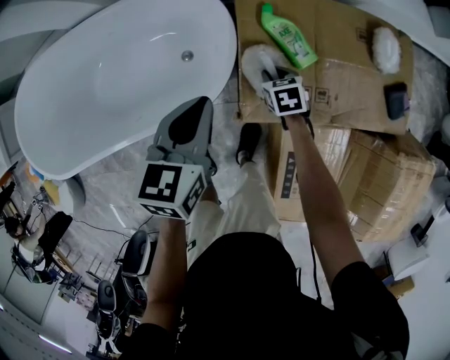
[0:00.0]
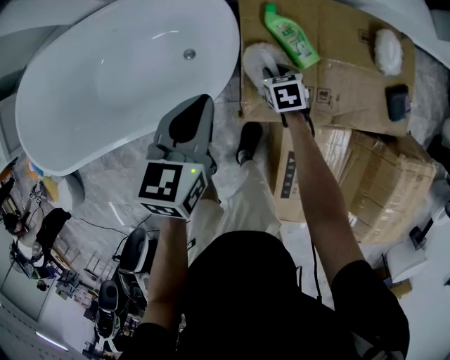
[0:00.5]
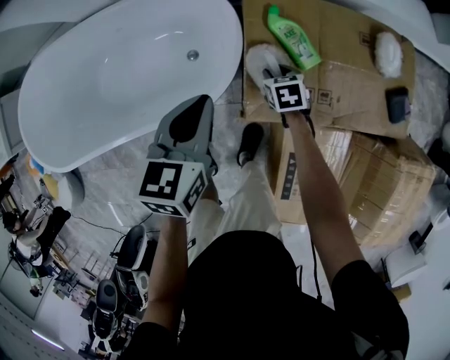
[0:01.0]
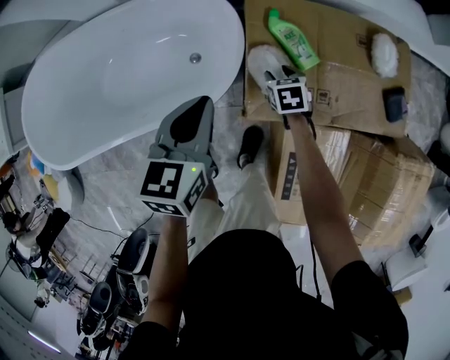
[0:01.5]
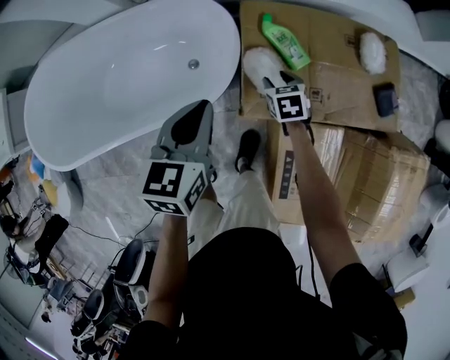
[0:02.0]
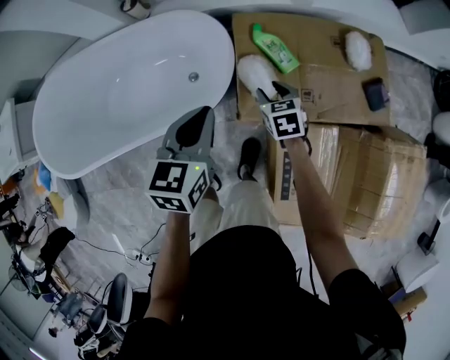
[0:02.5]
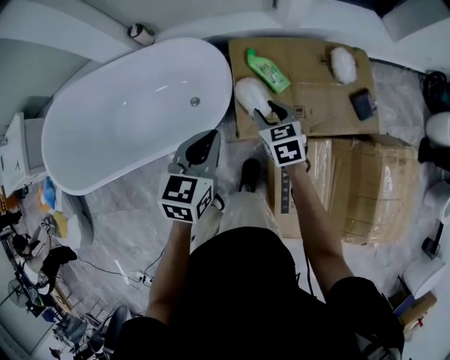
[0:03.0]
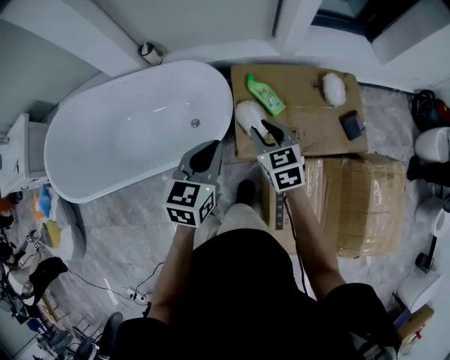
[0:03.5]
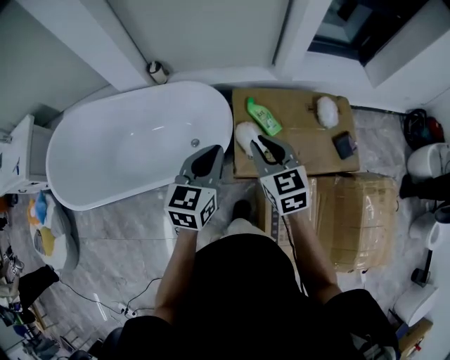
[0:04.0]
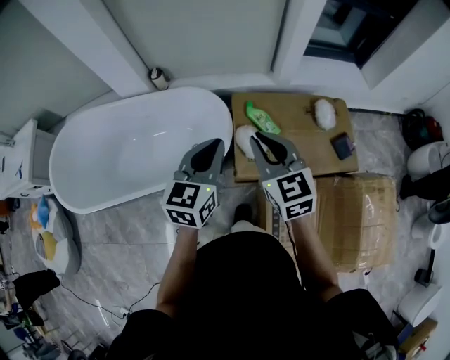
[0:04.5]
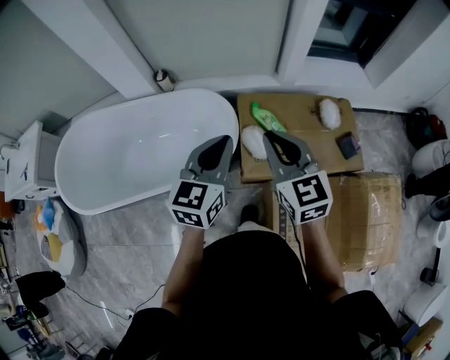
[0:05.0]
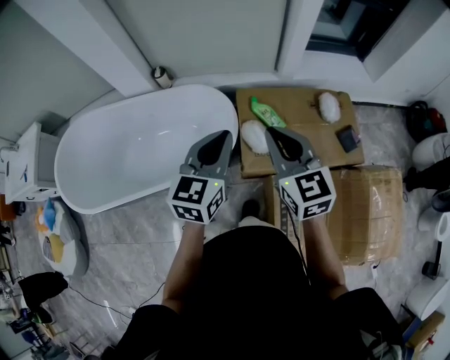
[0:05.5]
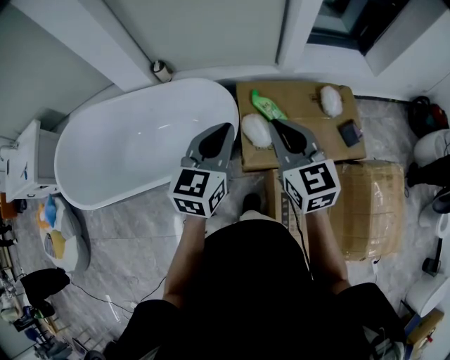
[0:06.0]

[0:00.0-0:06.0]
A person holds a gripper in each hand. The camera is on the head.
0:00.0 to 0:02.0: The right gripper travels upward by roughly 10 cm, and opens its fingers. Meanwhile the left gripper moves upward and backward, approximately 10 cm.
0:02.0 to 0:04.0: The left gripper is displaced upward by about 15 cm; the right gripper goes some 35 cm upward, swivels roughly 30 degrees, and closes.
0:04.0 to 0:06.0: The left gripper moves upward, about 5 cm. The right gripper is displaced upward by roughly 10 cm.

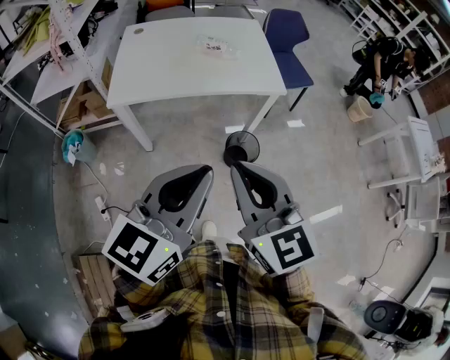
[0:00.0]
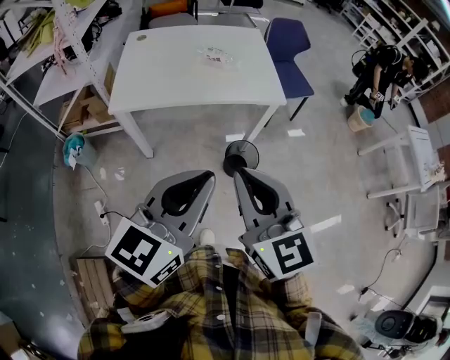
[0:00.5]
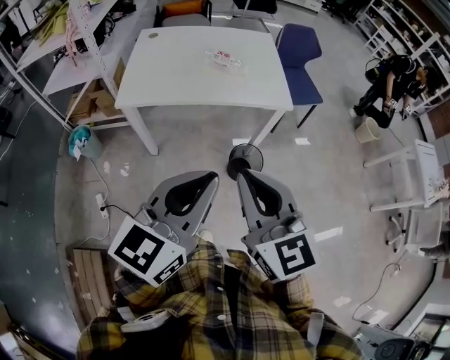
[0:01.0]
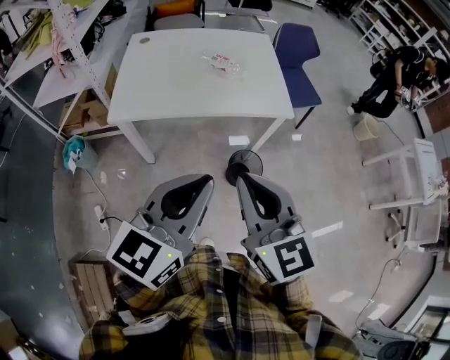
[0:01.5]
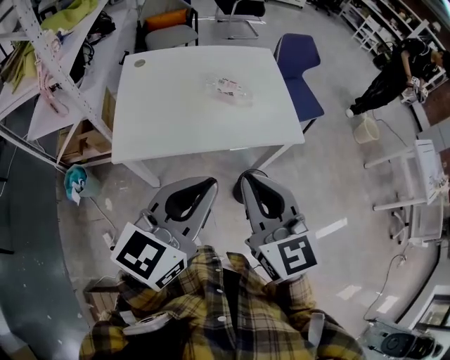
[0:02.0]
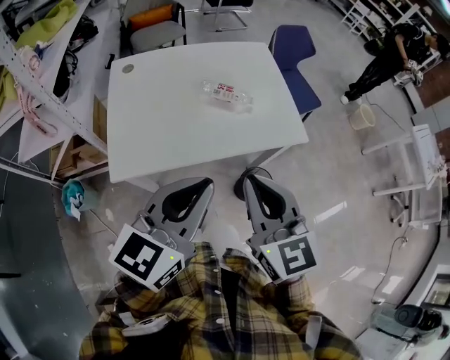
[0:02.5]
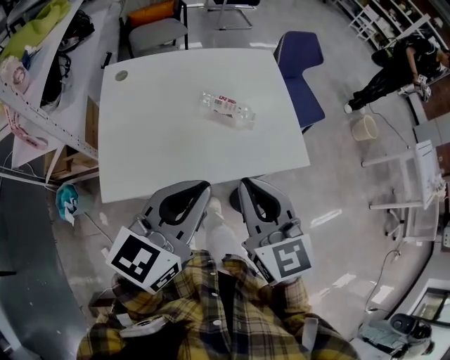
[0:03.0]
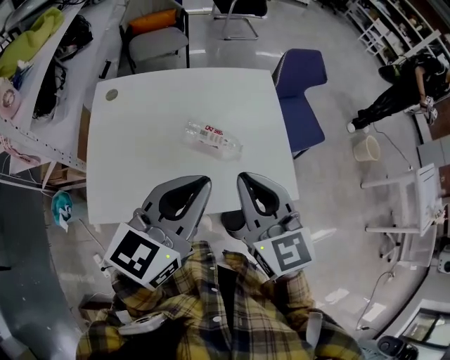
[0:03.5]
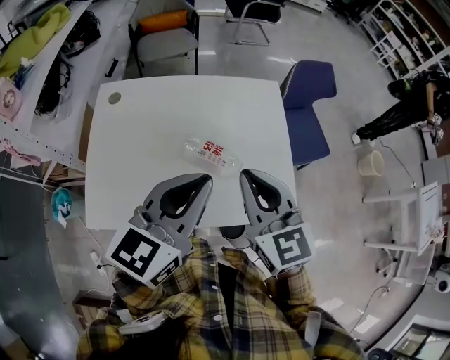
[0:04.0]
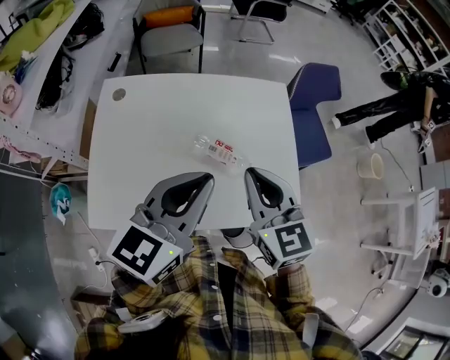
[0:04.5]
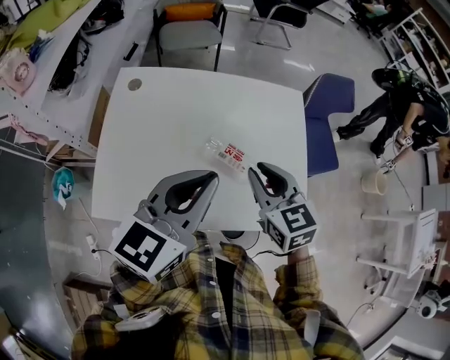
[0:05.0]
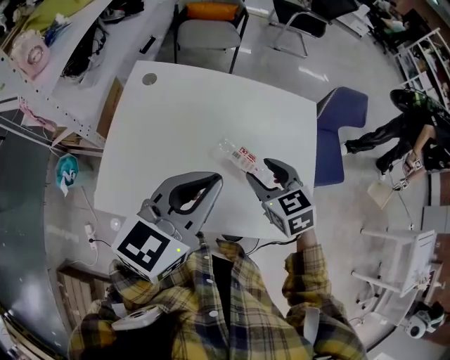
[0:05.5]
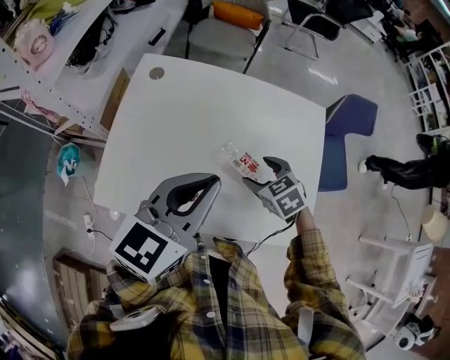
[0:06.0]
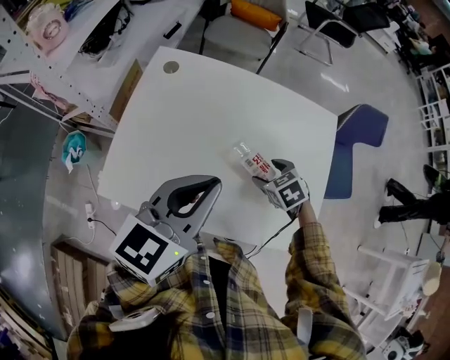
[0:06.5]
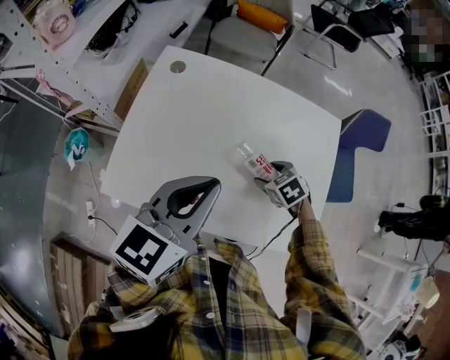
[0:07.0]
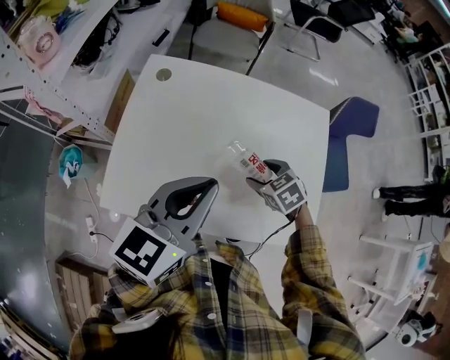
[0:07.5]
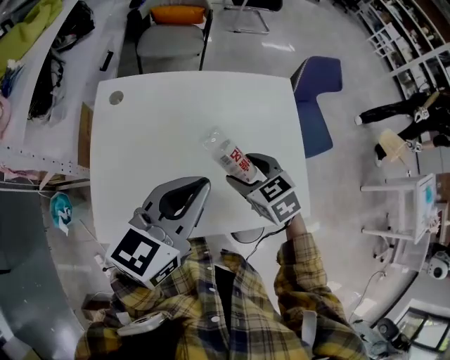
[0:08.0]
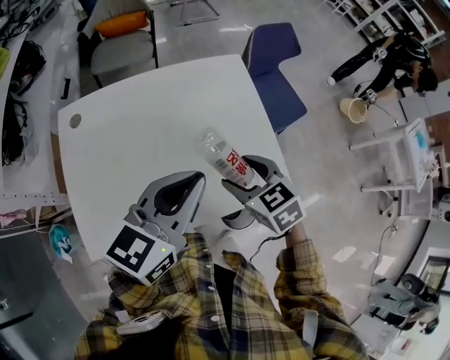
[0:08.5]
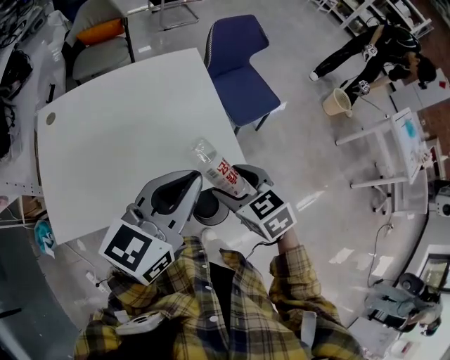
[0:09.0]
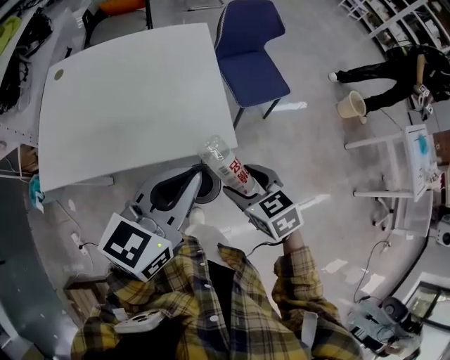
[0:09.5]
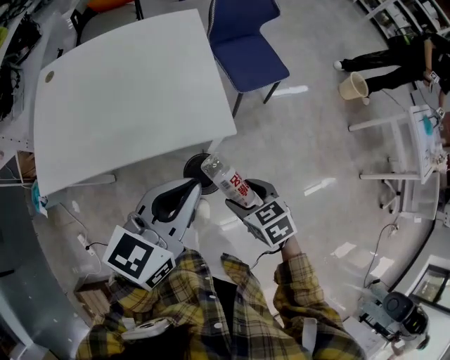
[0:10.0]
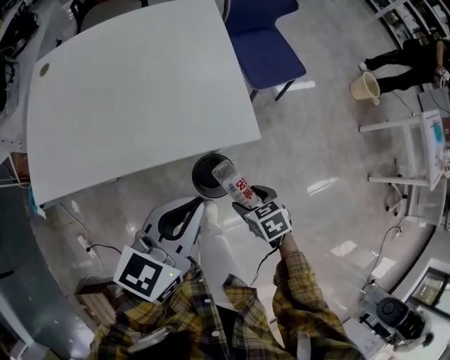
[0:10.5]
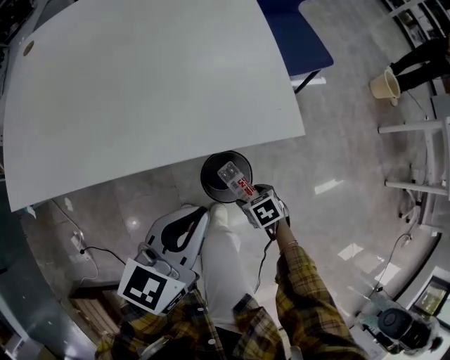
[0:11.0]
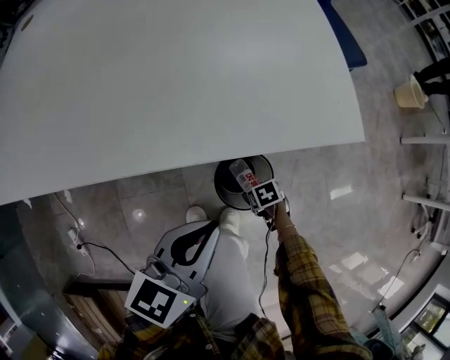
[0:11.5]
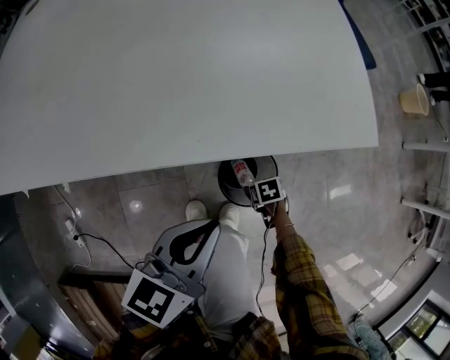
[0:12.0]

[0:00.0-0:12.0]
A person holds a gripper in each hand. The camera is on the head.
0:00.0 to 0:02.0: The grippers both shift forward by roughly 20 cm.
0:02.0 to 0:04.0: Both grippers travel together forward, about 35 cm.
0:04.0 to 0:06.0: The left gripper heads to the left, covering about 10 cm, while the right gripper goes roughly 25 cm downward and forward, tilts its fingers approximately 40 degrees downward, and opens up.
0:06.0 to 0:08.0: The right gripper ends up approximately 5 cm from where it was.
0:08.0 to 0:10.0: Both grippers travel together to the right and backward, about 40 cm.
0:10.0 to 0:12.0: The right gripper shifts approximately 50 cm downward, and turns by roughly 30 degrees. Meanwhile the left gripper moves downward, approximately 35 cm.

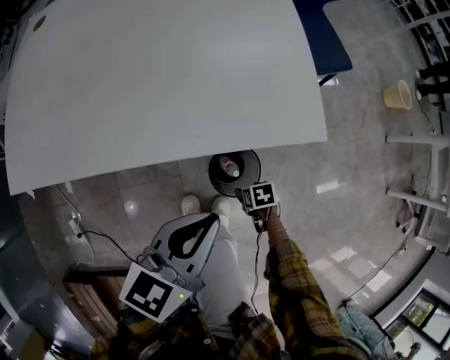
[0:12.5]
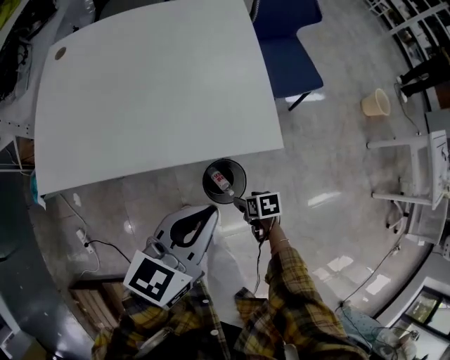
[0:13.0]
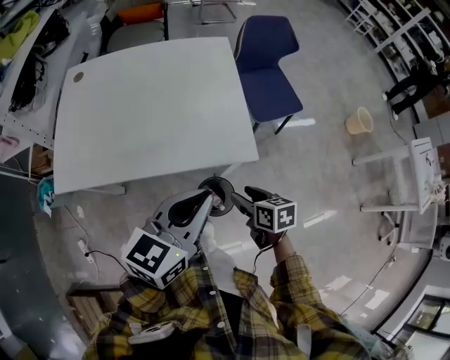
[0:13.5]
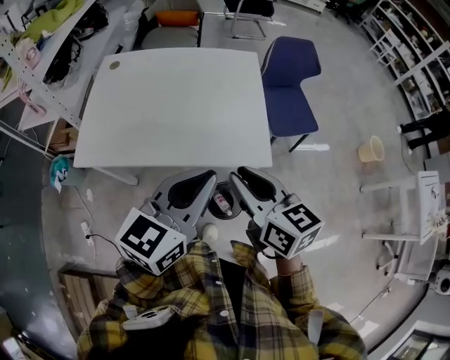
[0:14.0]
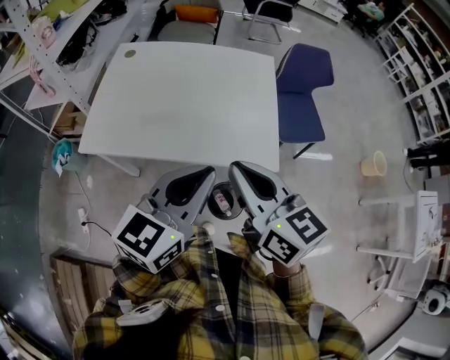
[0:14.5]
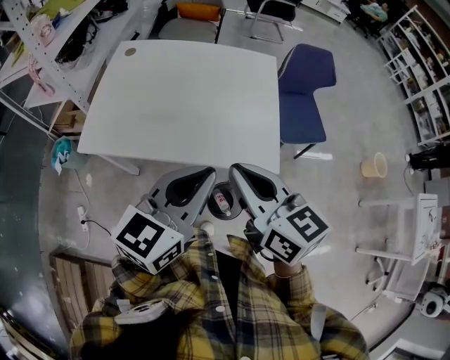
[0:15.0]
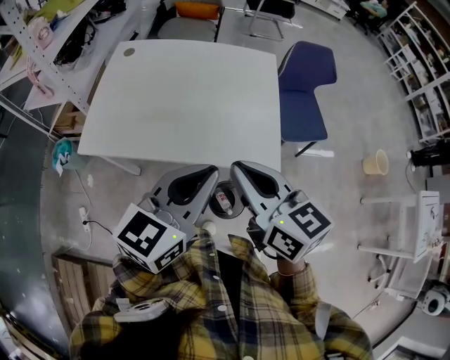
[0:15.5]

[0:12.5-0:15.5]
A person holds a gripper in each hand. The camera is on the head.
0:12.5 to 0:14.0: The right gripper travels upward by about 60 cm, angles its fingers upward, by approximately 60 degrees, and closes its fingers. Meanwhile the left gripper shifts about 30 cm upward, and rotates roughly 20 degrees.
0:14.0 to 0:15.5: The right gripper shifts by approximately 5 cm.

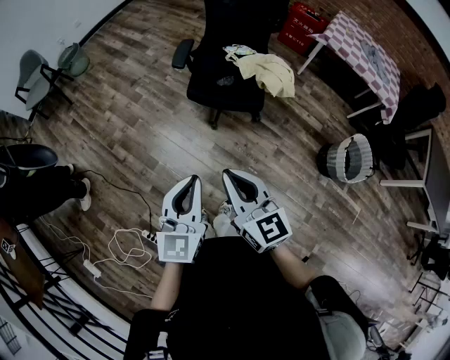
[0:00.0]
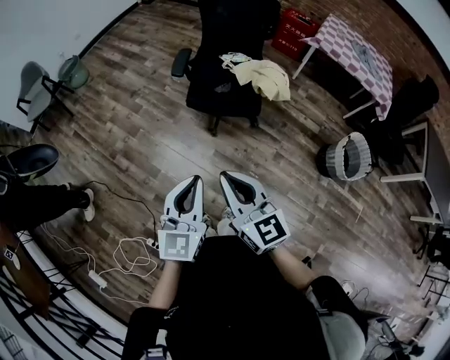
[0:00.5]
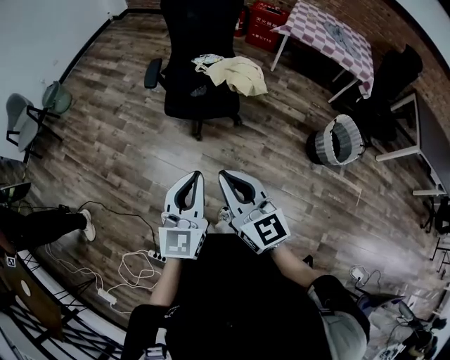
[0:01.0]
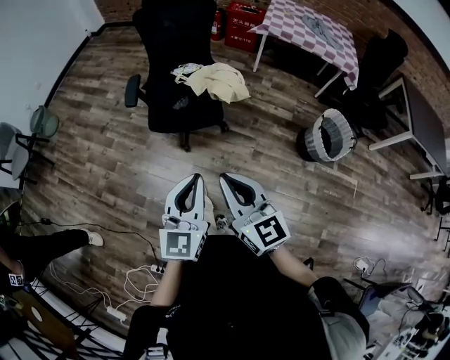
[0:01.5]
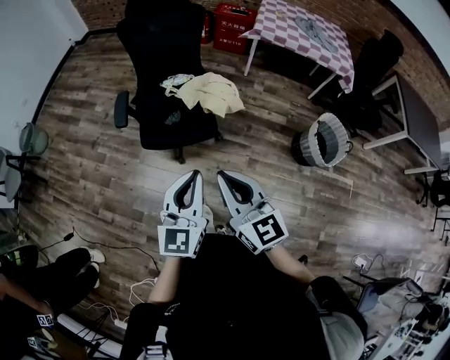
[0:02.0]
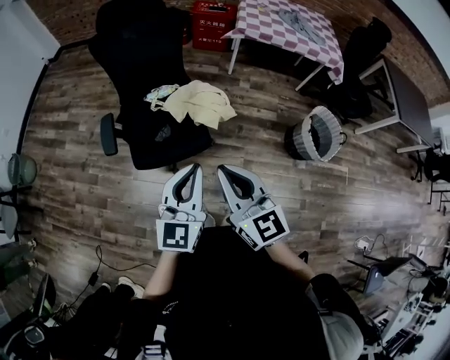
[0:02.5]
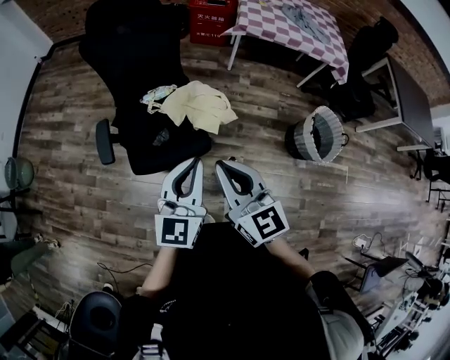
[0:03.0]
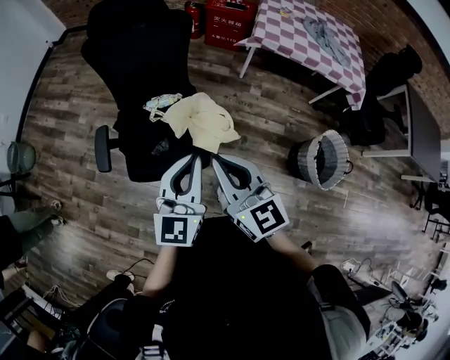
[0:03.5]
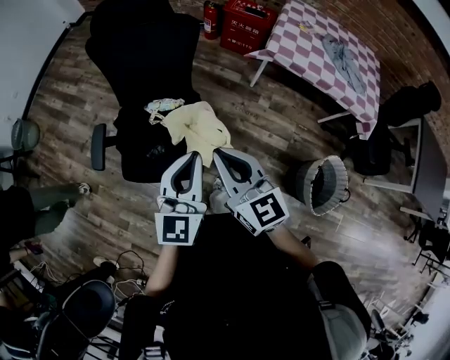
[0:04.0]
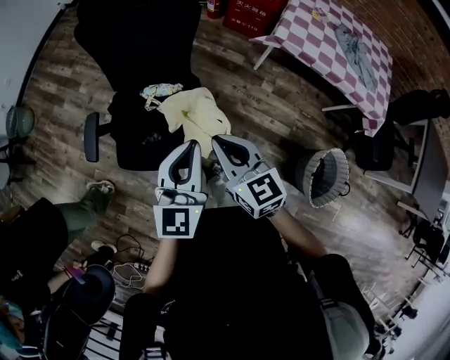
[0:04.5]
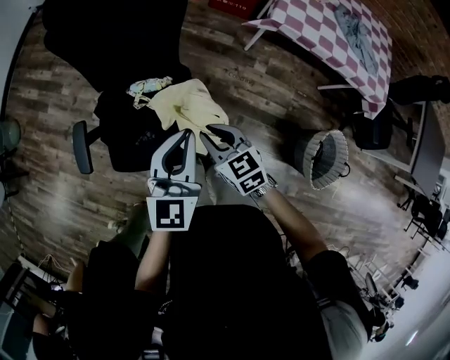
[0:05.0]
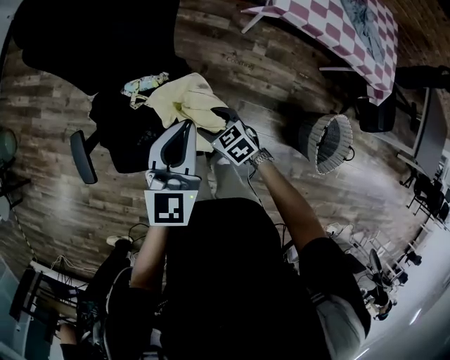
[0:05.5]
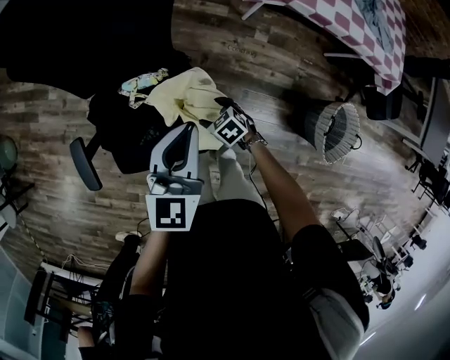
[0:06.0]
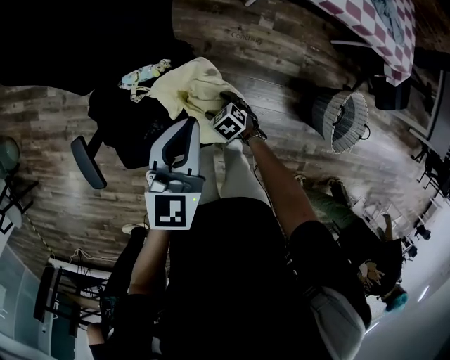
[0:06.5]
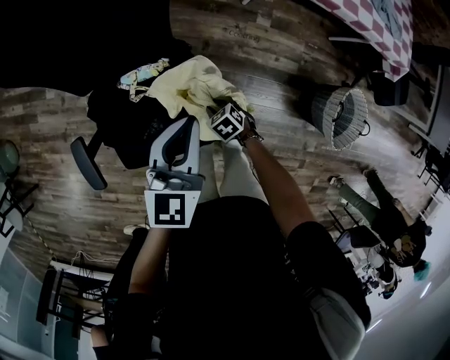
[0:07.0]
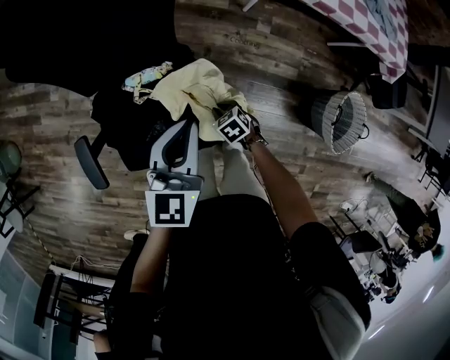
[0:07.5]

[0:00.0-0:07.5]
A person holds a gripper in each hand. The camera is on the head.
0:00.0 to 0:02.0: The left gripper travels forward and to the right by some 20 cm, and turns by about 20 degrees, while the right gripper moves to the right and forward, approximately 20 cm, and changes its angle by some 20 degrees.
0:02.0 to 0:04.0: Both grippers are carried forward, approximately 40 cm.
0:04.0 to 0:05.5: The right gripper shifts some 35 cm downward and forward, tilts its fingers approximately 40 degrees downward, and opens up; the left gripper heads forward and downward, covering roughly 20 cm.
0:05.5 to 0:07.5: The right gripper heads downward, covering roughly 15 cm, and closes its fingers; the left gripper ends up roughly 5 cm from where it was.
